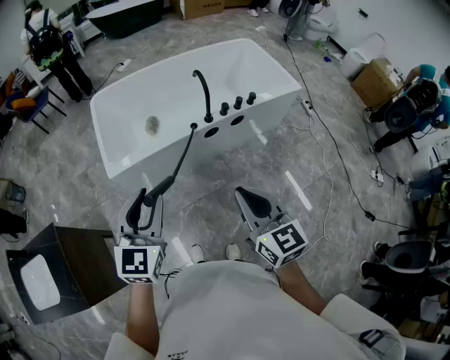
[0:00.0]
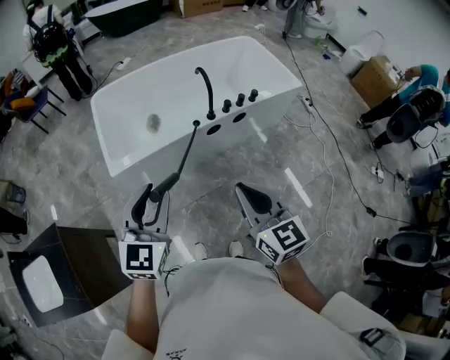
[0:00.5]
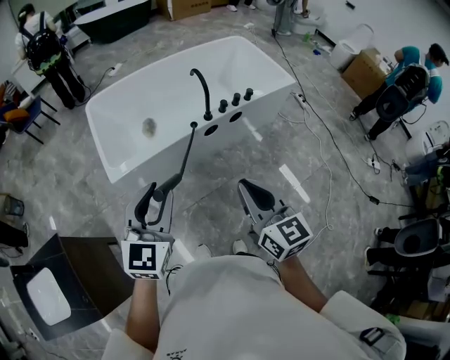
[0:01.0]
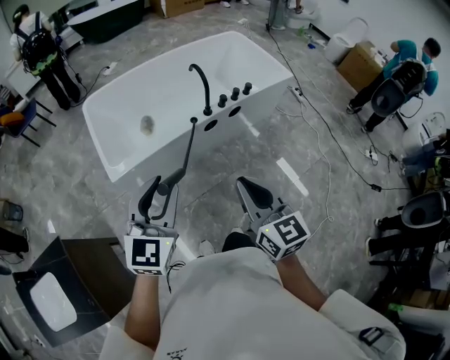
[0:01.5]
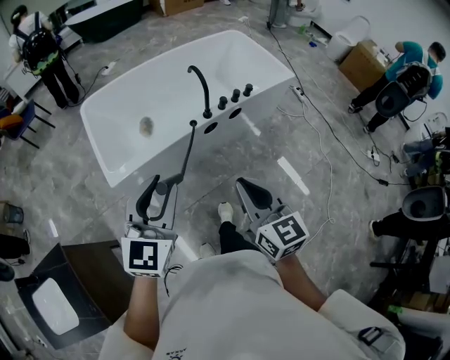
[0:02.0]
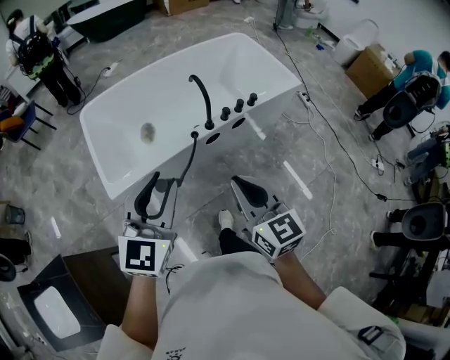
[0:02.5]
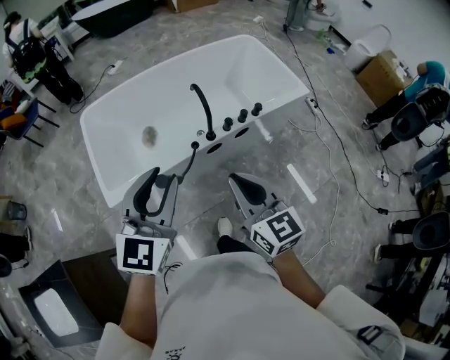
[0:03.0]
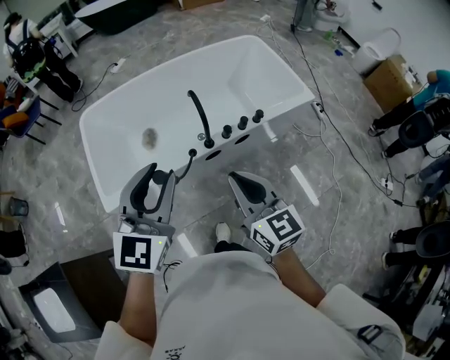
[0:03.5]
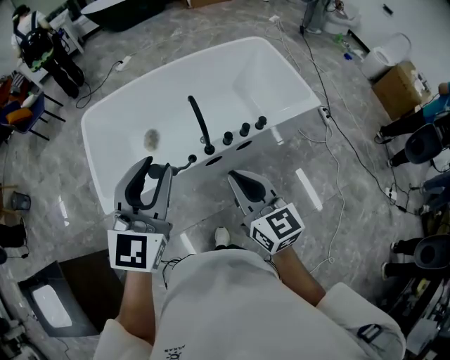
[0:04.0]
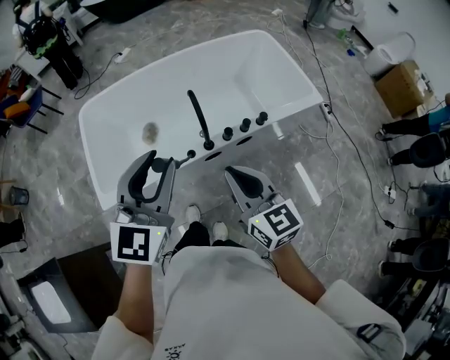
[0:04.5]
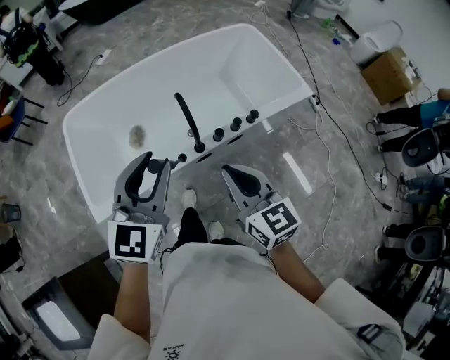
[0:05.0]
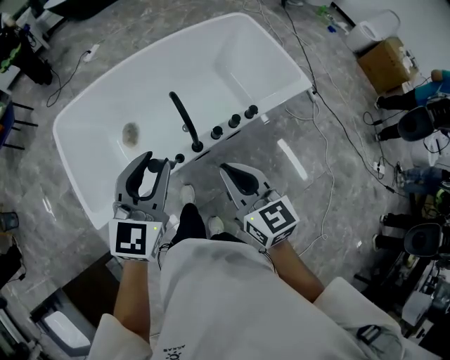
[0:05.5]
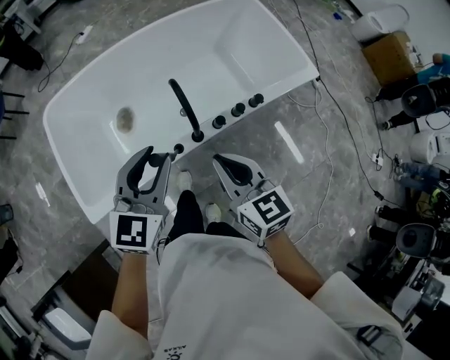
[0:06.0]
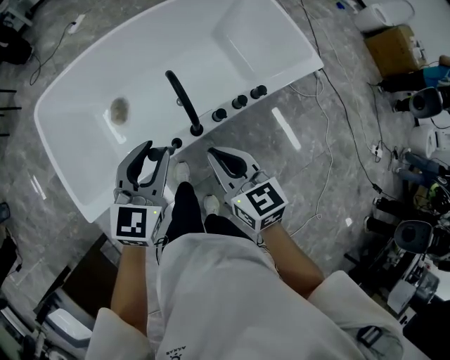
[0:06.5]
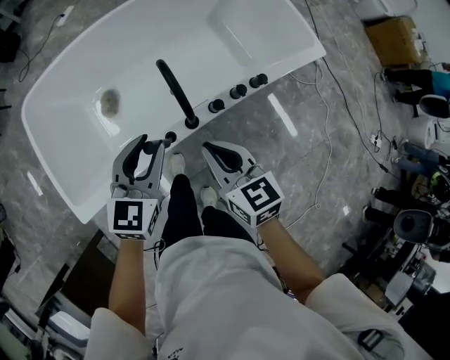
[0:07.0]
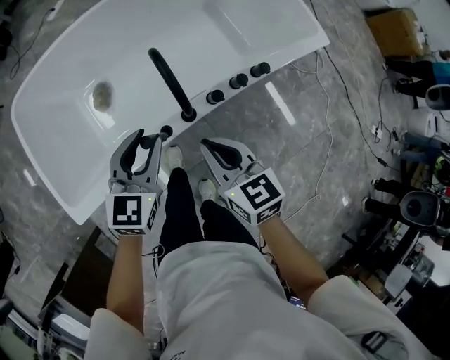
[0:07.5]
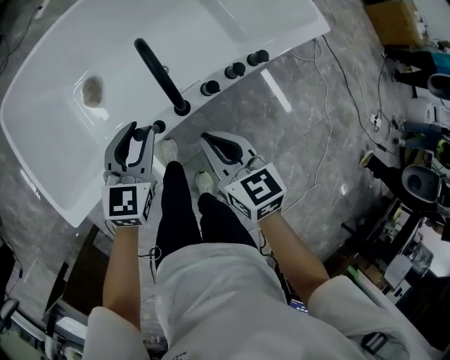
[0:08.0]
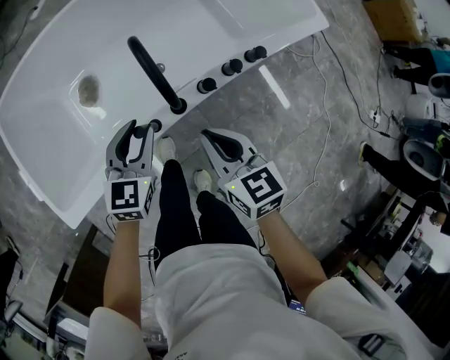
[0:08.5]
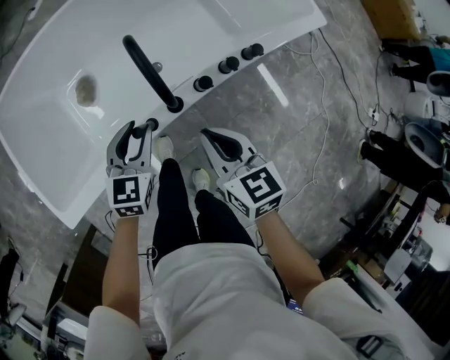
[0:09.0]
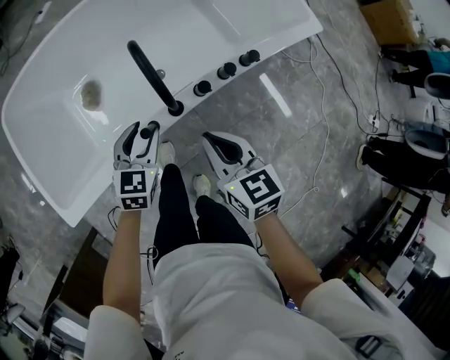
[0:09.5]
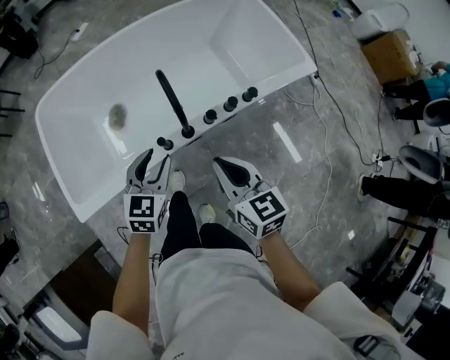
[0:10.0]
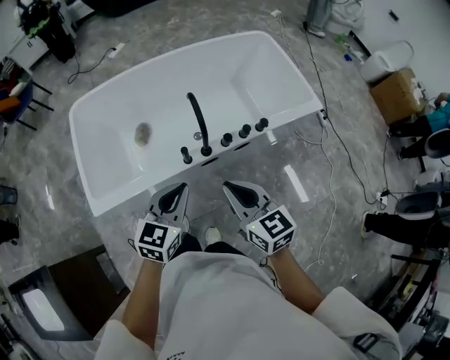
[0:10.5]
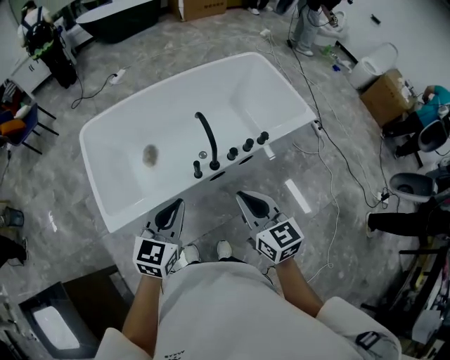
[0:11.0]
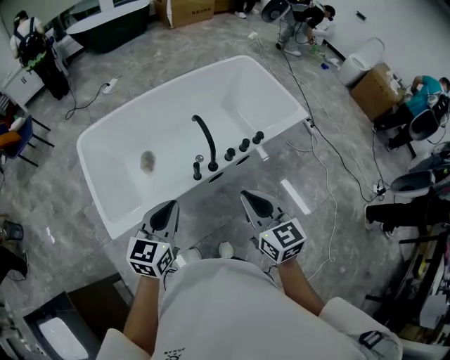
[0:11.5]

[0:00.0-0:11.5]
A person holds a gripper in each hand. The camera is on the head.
0:00.0 to 0:02.0: The right gripper changes place by some 5 cm.
0:02.0 to 0:04.0: The right gripper goes about 25 cm forward. Meanwhile the left gripper travels forward and to the right by some 30 cm.
0:04.0 to 0:06.0: The left gripper goes some 20 cm downward and forward, while the right gripper moves forward and downward, approximately 15 cm.
0:06.0 to 0:07.5: The two grippers go some 15 cm downward.
0:07.5 to 0:09.5: The left gripper is displaced downward by approximately 10 cm.
0:09.5 to 0:11.5: Both grippers travel together upward and backward, approximately 35 cm. The left gripper closes.

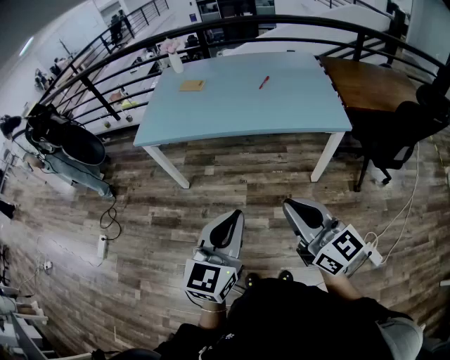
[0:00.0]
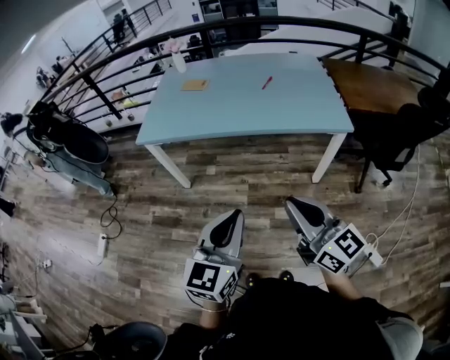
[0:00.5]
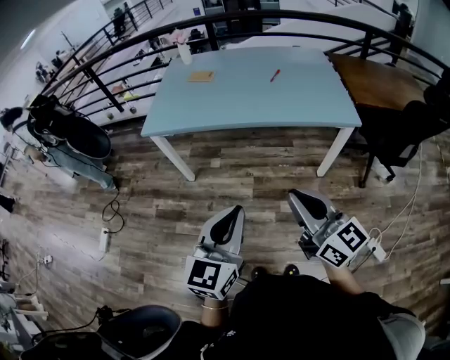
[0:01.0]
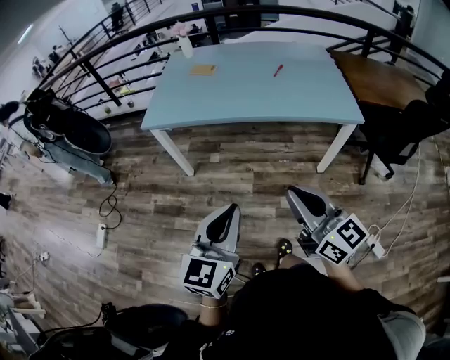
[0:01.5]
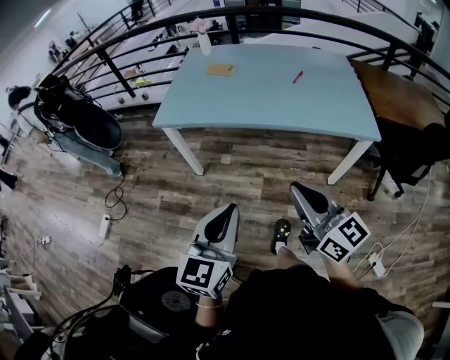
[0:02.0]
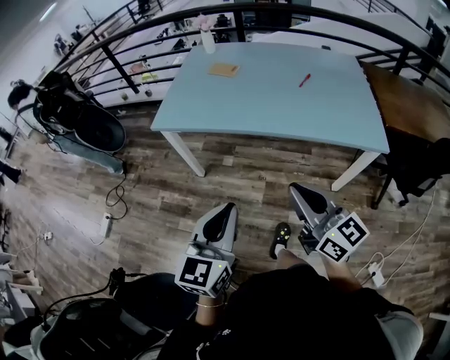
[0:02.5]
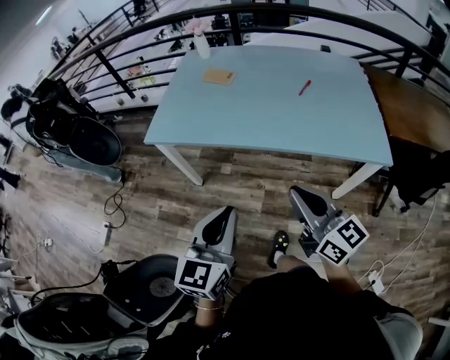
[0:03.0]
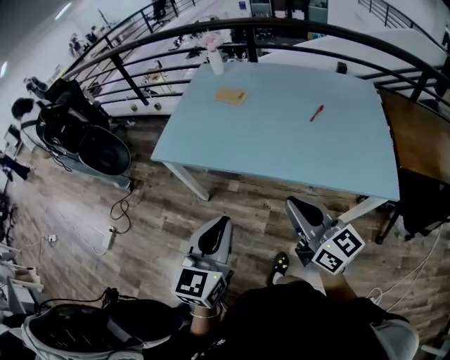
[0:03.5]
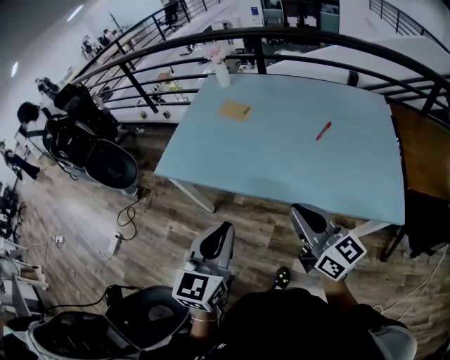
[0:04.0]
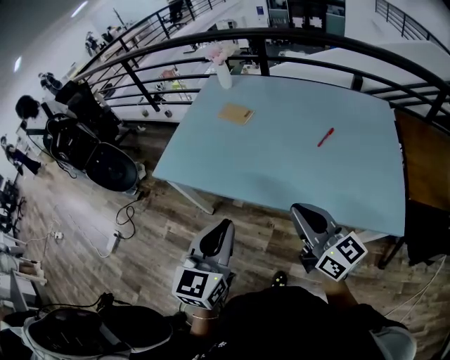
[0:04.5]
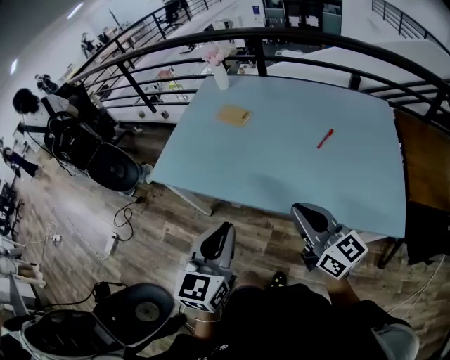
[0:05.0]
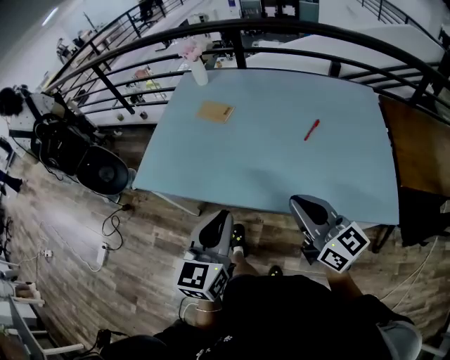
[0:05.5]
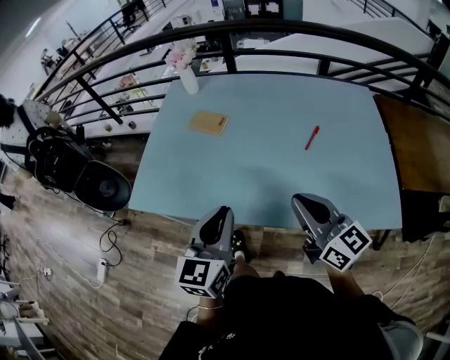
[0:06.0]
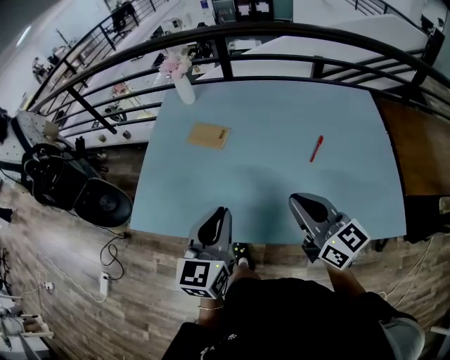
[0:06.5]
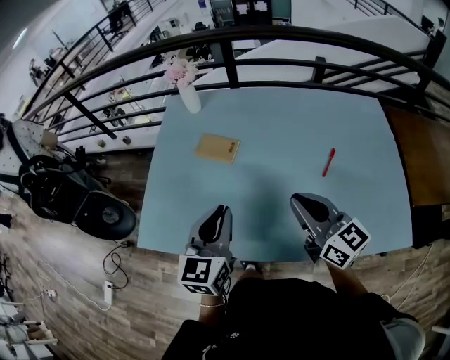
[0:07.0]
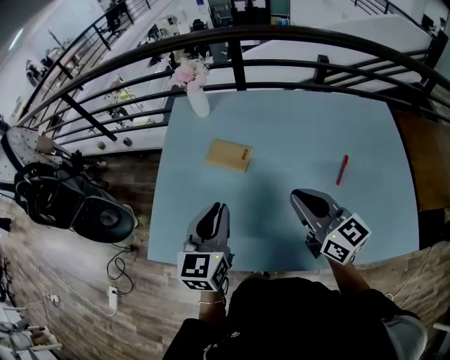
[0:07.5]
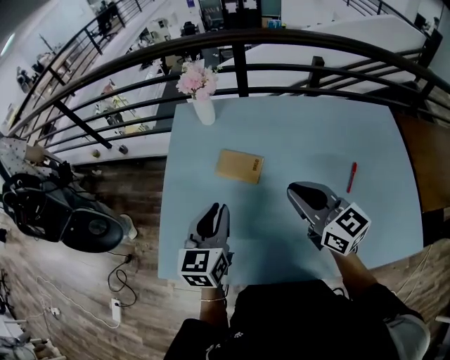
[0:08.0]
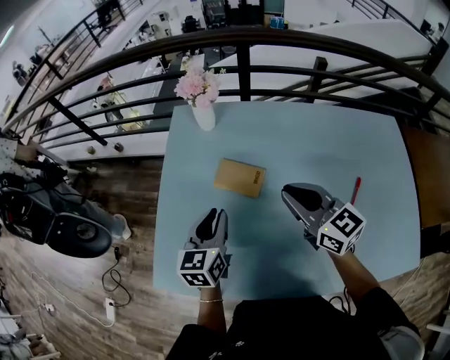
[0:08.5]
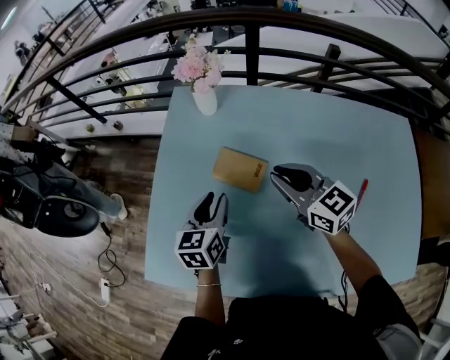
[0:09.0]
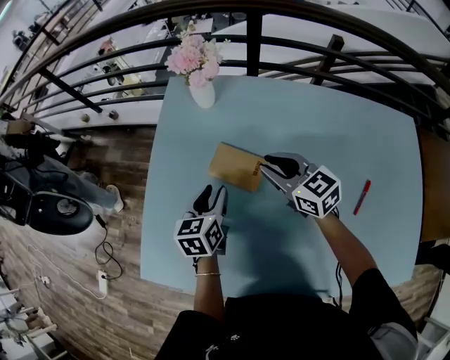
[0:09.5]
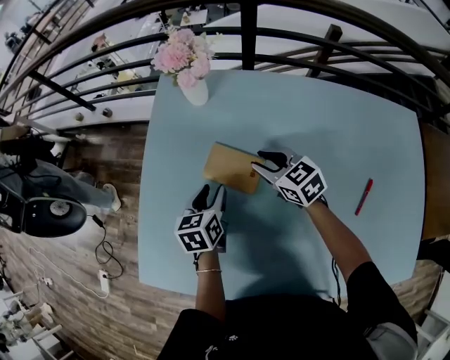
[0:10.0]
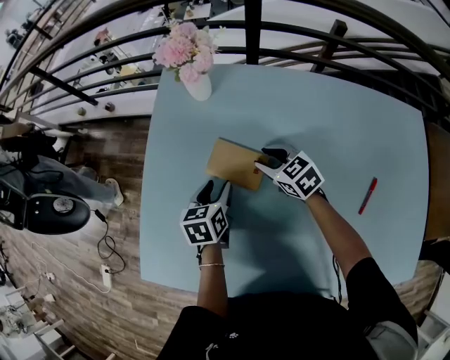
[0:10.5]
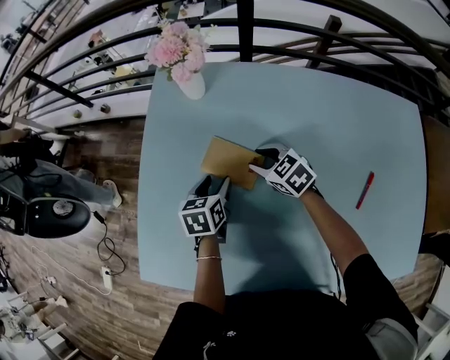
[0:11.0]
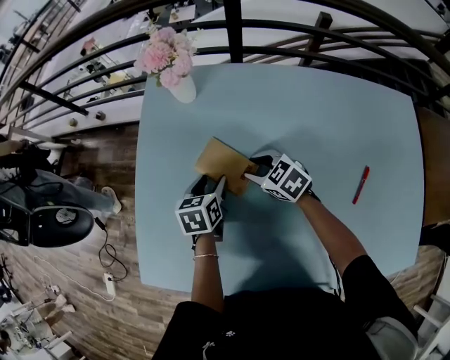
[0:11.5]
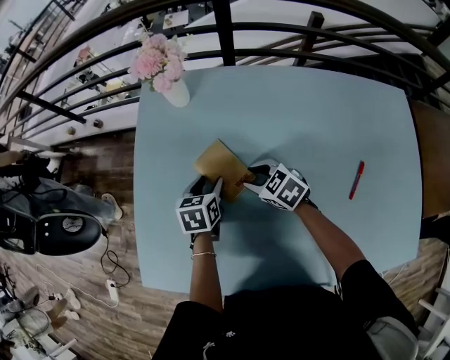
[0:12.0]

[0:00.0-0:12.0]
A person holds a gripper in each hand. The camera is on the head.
0:00.0 to 0:02.0: The right gripper goes approximately 10 cm forward and to the left, while the left gripper is displaced to the left and forward by approximately 10 cm.
0:02.0 to 0:04.0: The right gripper is displaced forward and to the right by approximately 35 cm, while the left gripper heads forward, covering about 30 cm.
0:04.0 to 0:06.0: The grippers both shift forward by approximately 20 cm.
0:06.0 to 0:08.0: The grippers both shift forward and to the left by roughly 35 cm.
0:08.0 to 0:10.0: The left gripper is displaced downward and forward by roughly 25 cm, rotates some 30 degrees, and opens up. Meanwhile the right gripper heads forward and downward, covering some 30 cm, swivels some 30 degrees, and opens.
0:10.0 to 0:12.0: The right gripper travels backward and downward by approximately 10 cm.

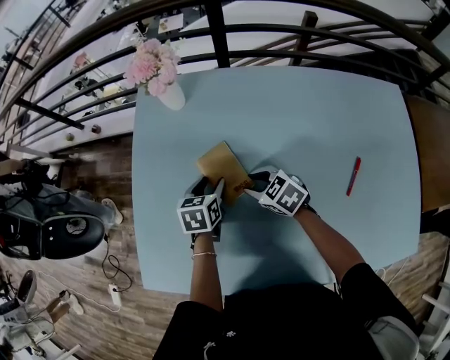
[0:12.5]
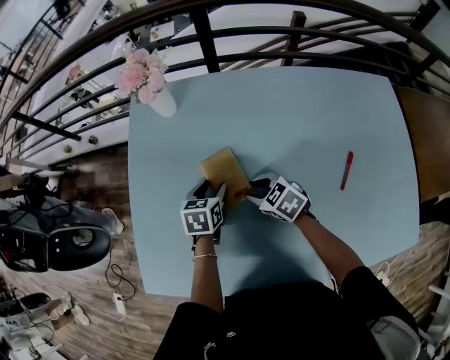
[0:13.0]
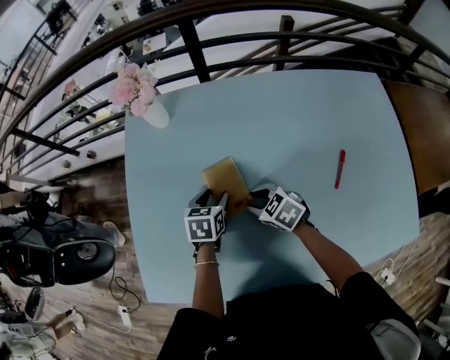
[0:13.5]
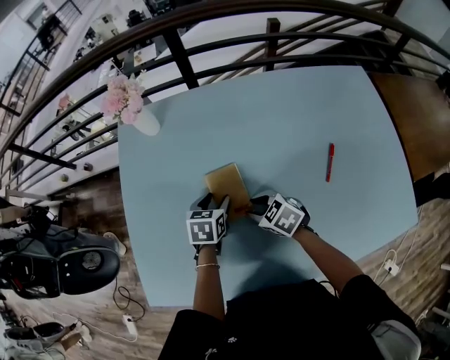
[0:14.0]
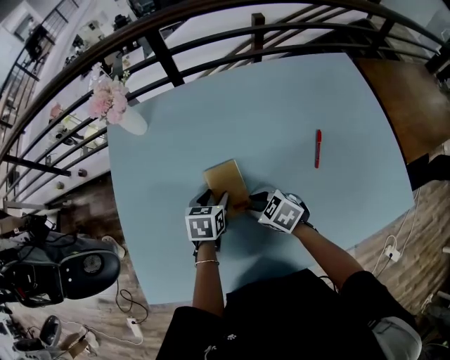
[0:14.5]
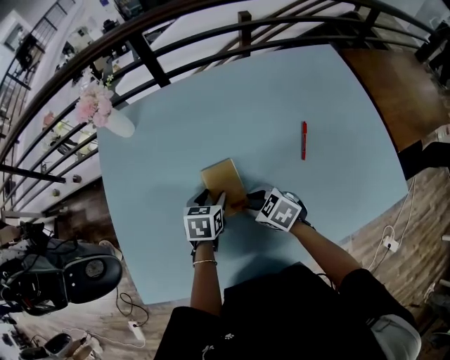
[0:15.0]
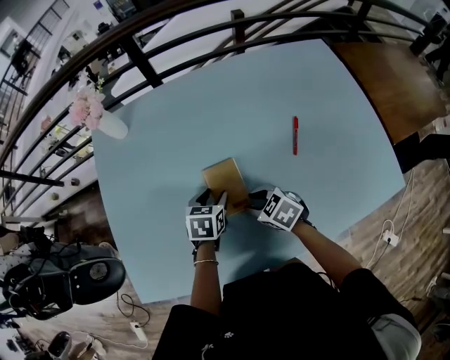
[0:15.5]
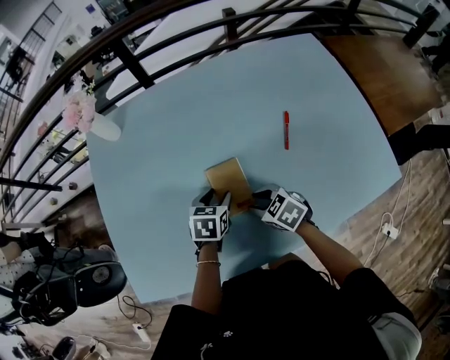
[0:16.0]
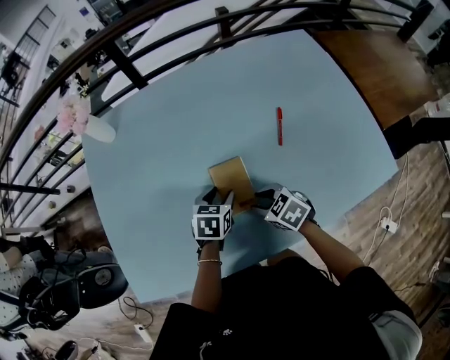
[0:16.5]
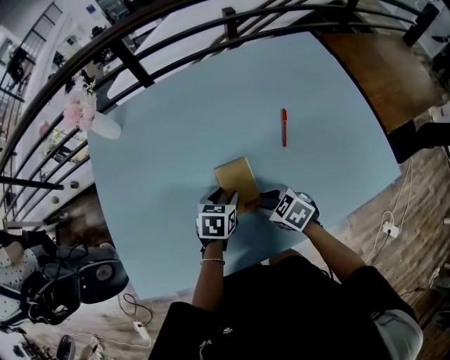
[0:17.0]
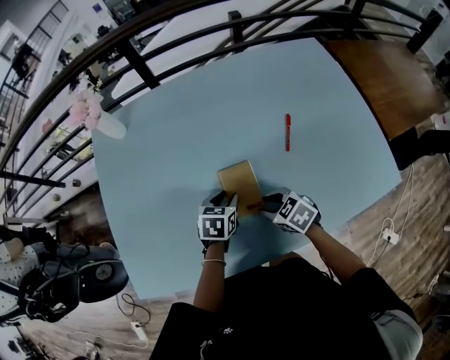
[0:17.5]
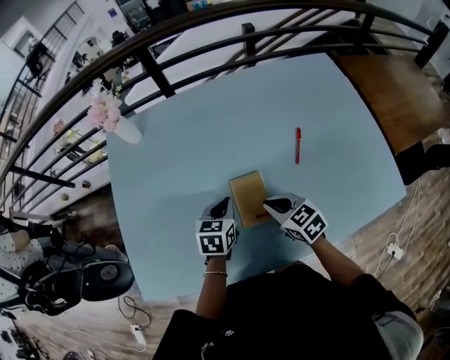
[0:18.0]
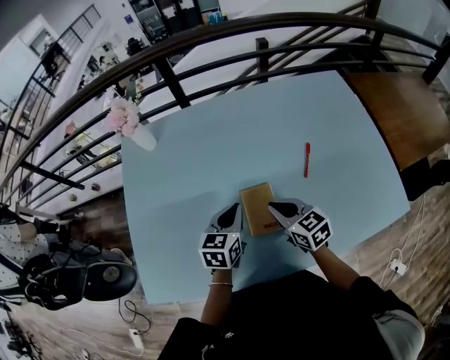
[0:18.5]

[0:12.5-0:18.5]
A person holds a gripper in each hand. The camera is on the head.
0:12.5 to 0:14.5: The right gripper travels backward by roughly 15 cm; the left gripper goes about 10 cm backward and to the right.
0:14.5 to 0:16.5: The right gripper shifts approximately 15 cm backward and to the right. Meanwhile the left gripper travels to the right and backward by approximately 15 cm.
0:16.5 to 0:18.5: The left gripper travels upward by about 10 cm, swivels approximately 20 degrees, and closes. The right gripper moves upward and forward, approximately 10 cm, rotates about 30 degrees, and closes.
